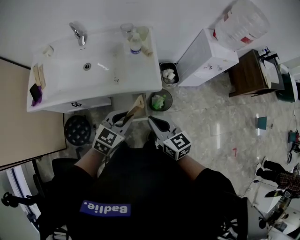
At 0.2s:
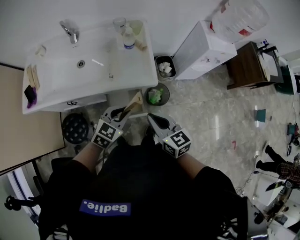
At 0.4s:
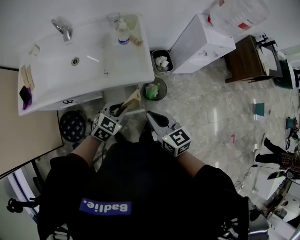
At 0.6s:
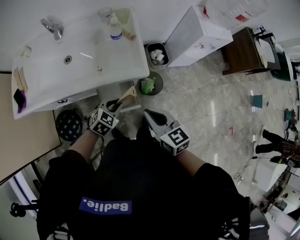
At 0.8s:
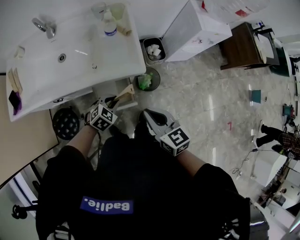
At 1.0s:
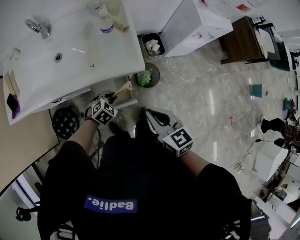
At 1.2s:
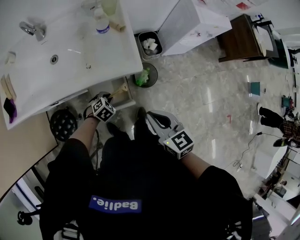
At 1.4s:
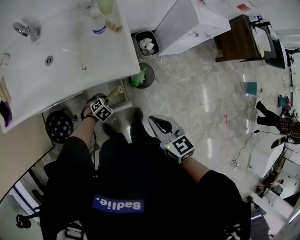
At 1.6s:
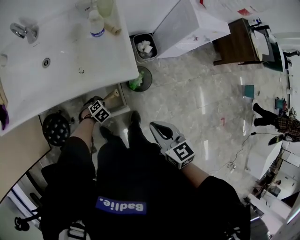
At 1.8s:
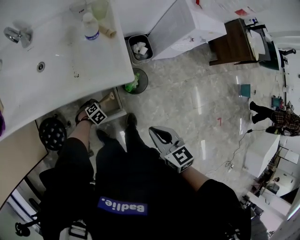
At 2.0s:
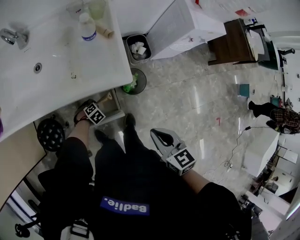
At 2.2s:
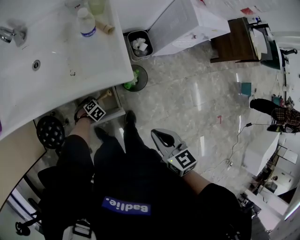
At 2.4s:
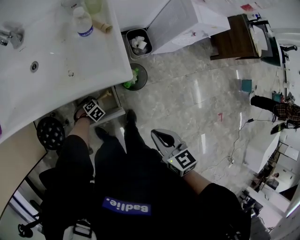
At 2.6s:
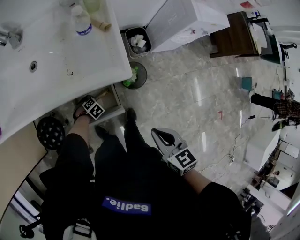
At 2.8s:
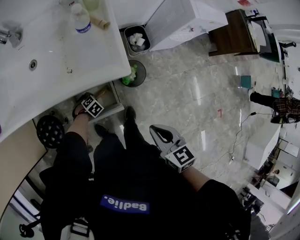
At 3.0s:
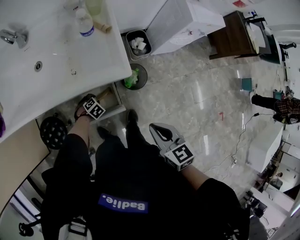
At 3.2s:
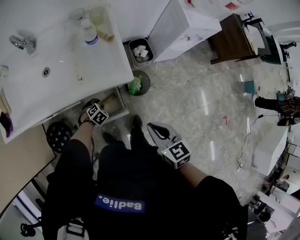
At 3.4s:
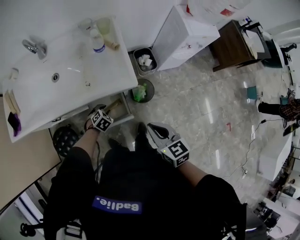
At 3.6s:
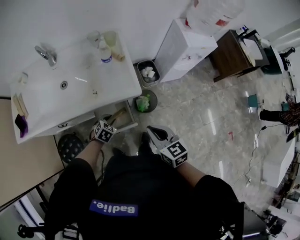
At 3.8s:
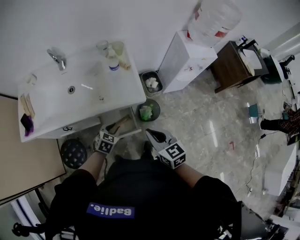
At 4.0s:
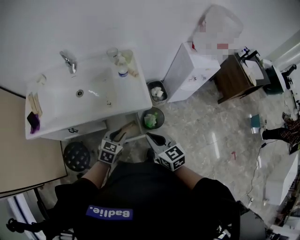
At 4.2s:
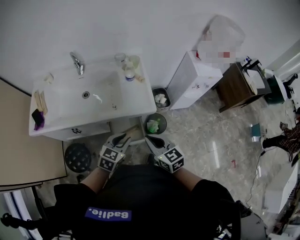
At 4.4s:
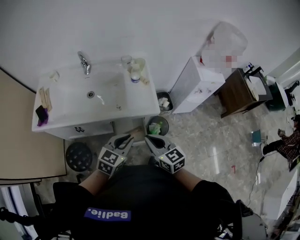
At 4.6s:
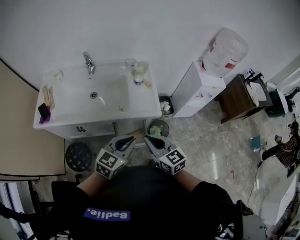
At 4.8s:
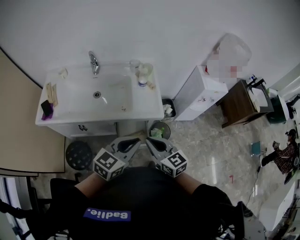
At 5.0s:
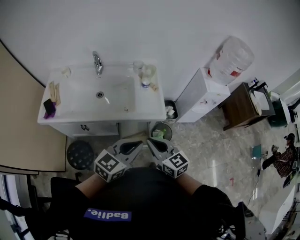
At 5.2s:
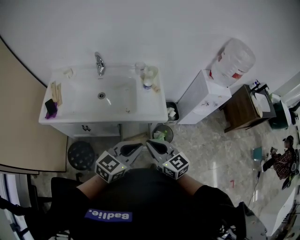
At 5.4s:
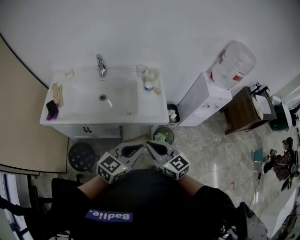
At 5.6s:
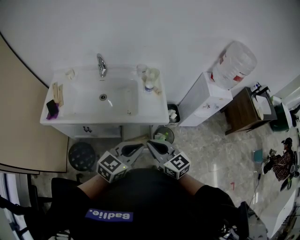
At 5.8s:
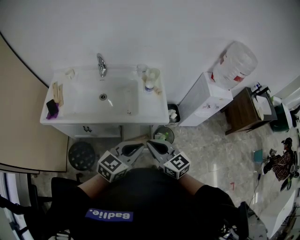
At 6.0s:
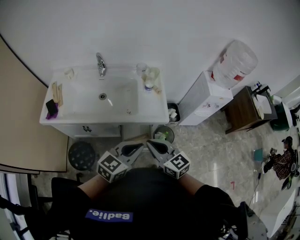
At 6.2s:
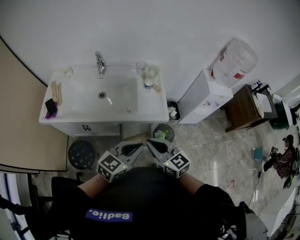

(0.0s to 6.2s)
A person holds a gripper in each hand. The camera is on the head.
0.0s - 1.6s: The right gripper shifts by about 15 cm, while the left gripper shifts approximately 35 cm downward, and tilts its fingers some 50 degrees downward.
1.6s - 3.2s: The left gripper travels downward and back again, some 10 cm each way.
3.2s - 4.6s: The right gripper heads to the left and upward, covering approximately 20 cm, and changes its angle by approximately 20 degrees, while the left gripper goes roughly 40 cm upward, and points its fingers some 50 degrees further upward.
4.6s - 6.2s: The grippers make only small movements.

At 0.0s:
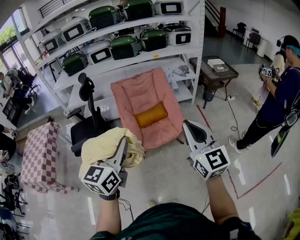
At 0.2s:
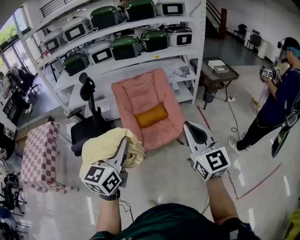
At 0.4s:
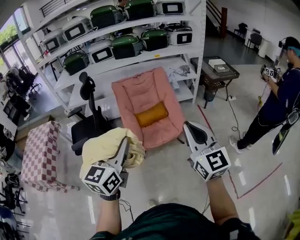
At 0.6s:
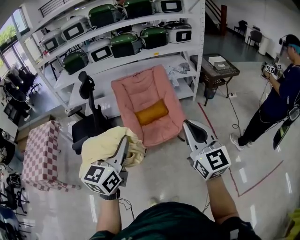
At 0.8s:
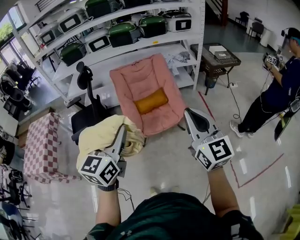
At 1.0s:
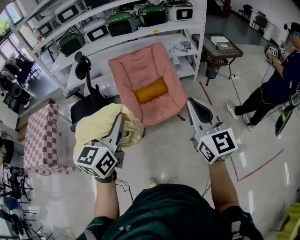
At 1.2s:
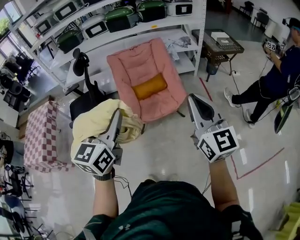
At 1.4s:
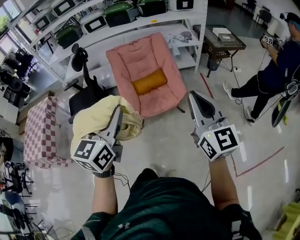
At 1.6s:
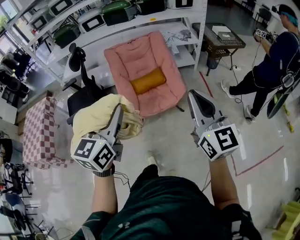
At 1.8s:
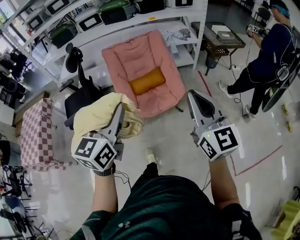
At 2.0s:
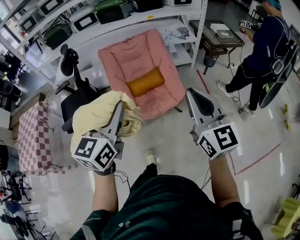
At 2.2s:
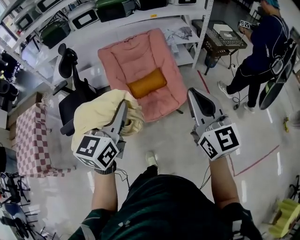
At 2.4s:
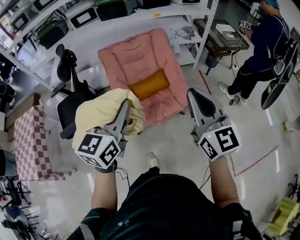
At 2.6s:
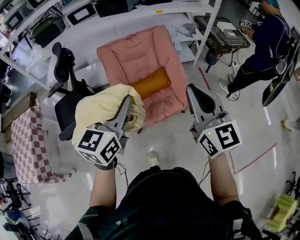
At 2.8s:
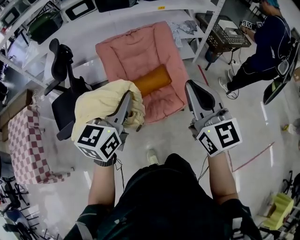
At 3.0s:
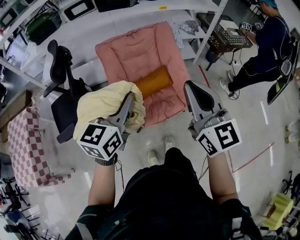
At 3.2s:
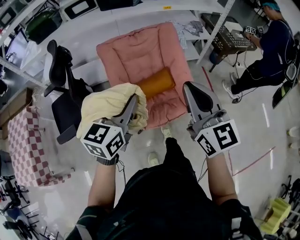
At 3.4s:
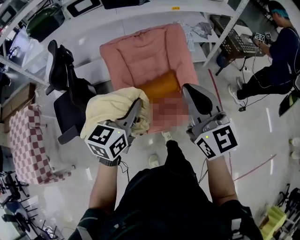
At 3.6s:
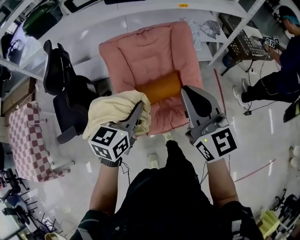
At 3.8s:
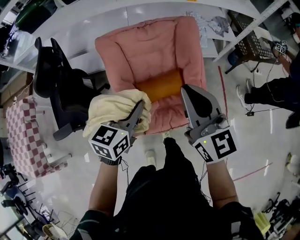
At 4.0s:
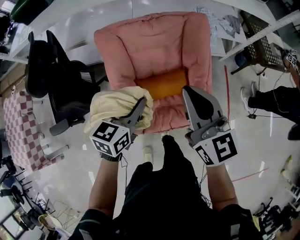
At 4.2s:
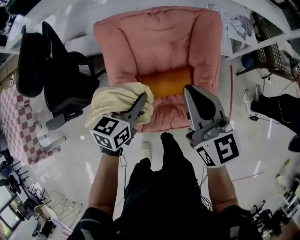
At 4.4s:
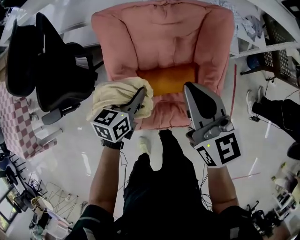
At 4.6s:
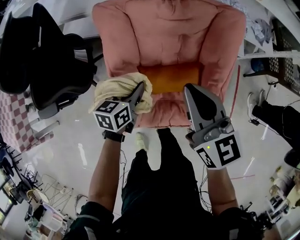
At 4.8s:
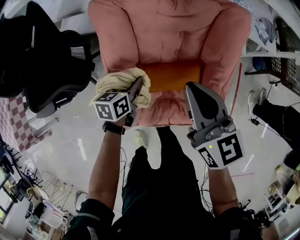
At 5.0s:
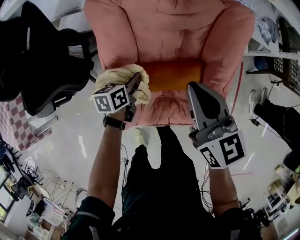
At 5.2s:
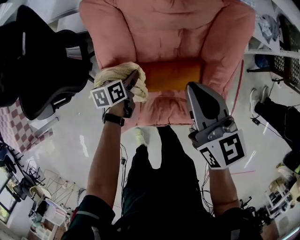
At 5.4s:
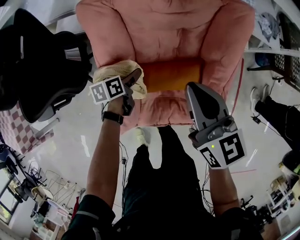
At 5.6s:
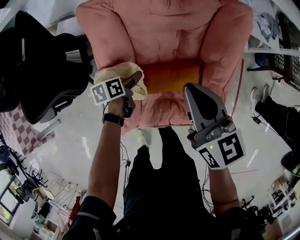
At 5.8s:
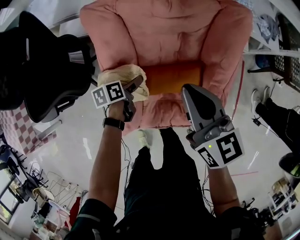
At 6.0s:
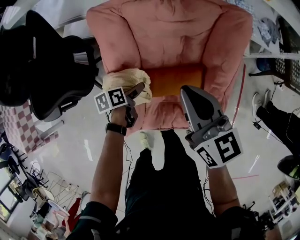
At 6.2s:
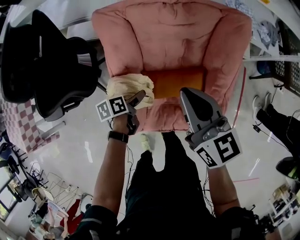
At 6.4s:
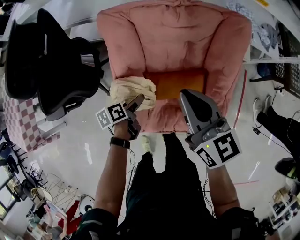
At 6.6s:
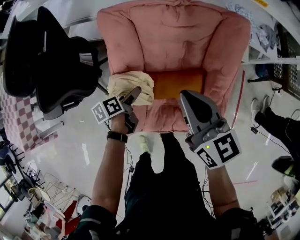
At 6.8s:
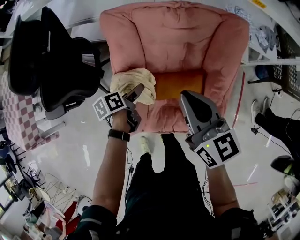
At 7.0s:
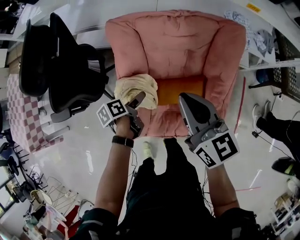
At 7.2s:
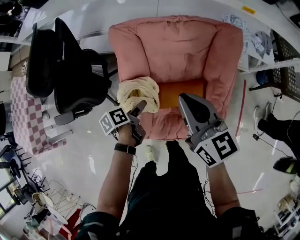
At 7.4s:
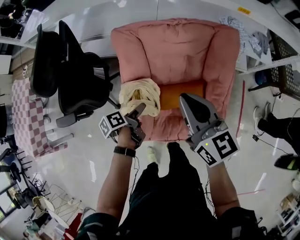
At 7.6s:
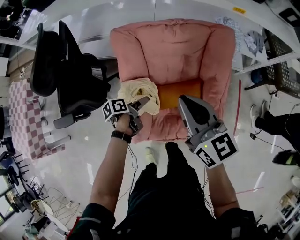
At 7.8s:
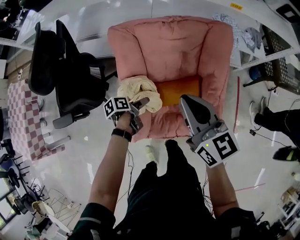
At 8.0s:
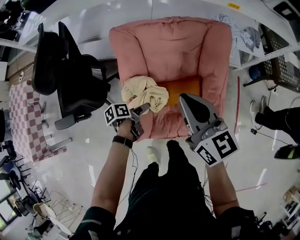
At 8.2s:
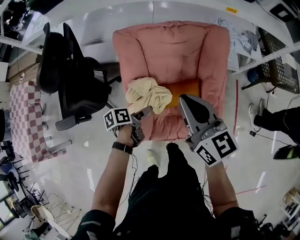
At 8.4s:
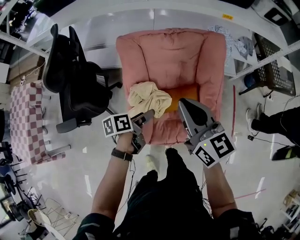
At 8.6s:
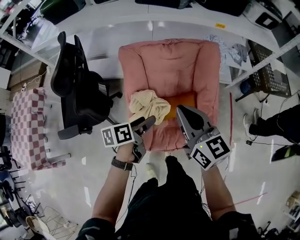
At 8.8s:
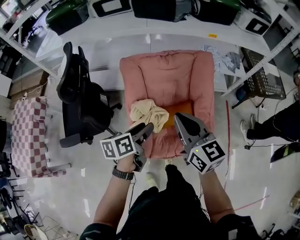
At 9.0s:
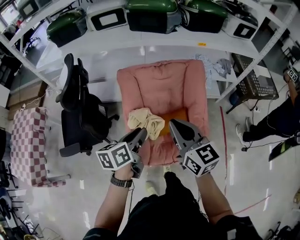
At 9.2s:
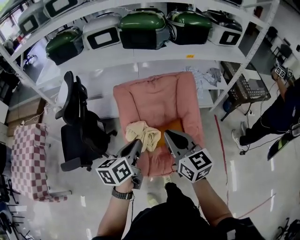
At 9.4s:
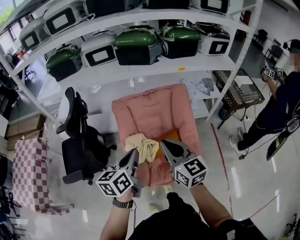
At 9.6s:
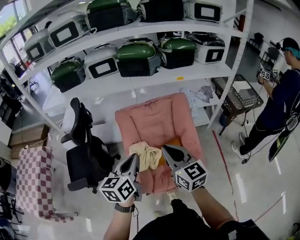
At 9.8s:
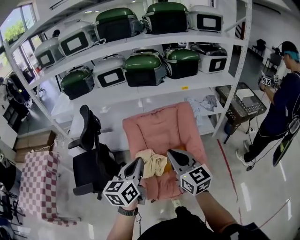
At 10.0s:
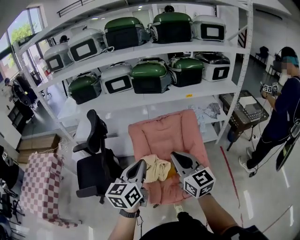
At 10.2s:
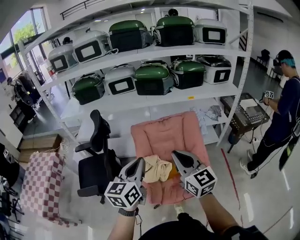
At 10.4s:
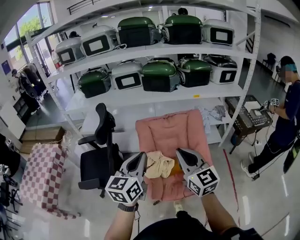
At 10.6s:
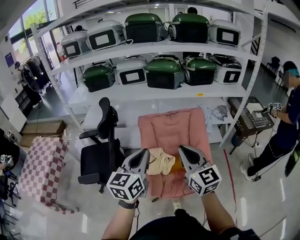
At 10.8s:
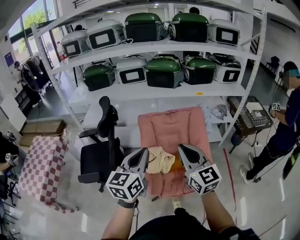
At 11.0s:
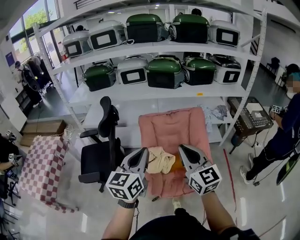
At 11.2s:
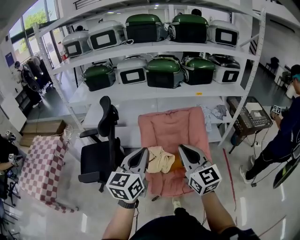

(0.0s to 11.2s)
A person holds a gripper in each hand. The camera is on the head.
0.0s - 1.6s: The two grippers go some 5 cm to the right.
1.6s - 3.2s: The right gripper heads forward and to the left, covering some 40 cm, while the left gripper shifts roughly 35 cm forward.
3.2s - 4.8s: The right gripper heads forward and downward, covering some 40 cm, and changes its angle by roughly 30 degrees. Meanwhile the left gripper heads downward and forward, covering approximately 50 cm, and turns by roughly 40 degrees.
4.8s - 6.4s: The left gripper is displaced backward by some 5 cm, swivels approximately 30 degrees, and opens.
6.4s - 8.0s: The left gripper shifts by approximately 5 cm. The right gripper travels upward and backward by roughly 10 cm.
8.0s - 9.6s: The right gripper heads backward and upward, covering about 20 cm. Meanwhile the left gripper is displaced upward by approximately 40 cm, rolls clockwise, seen from behind, by some 60 degrees, and closes.
9.6s - 11.2s: The two grippers go approximately 10 cm upward and backward.

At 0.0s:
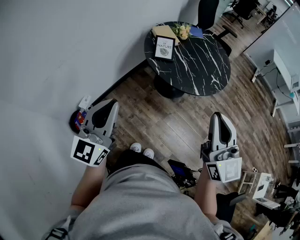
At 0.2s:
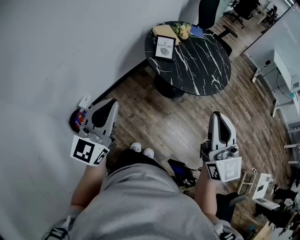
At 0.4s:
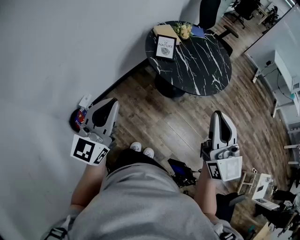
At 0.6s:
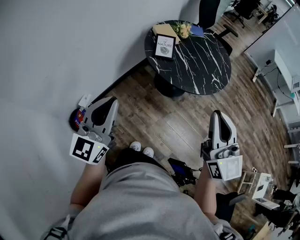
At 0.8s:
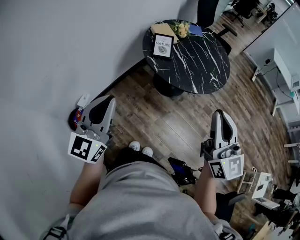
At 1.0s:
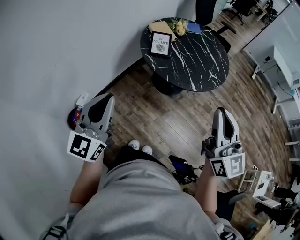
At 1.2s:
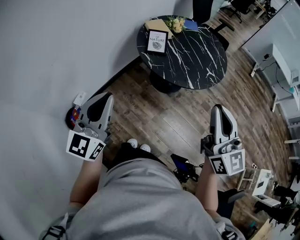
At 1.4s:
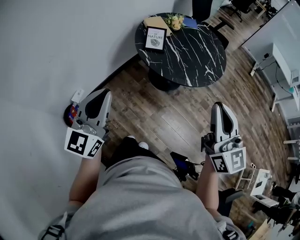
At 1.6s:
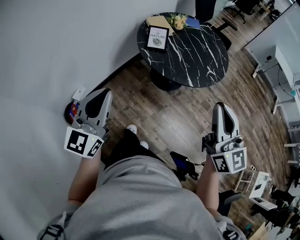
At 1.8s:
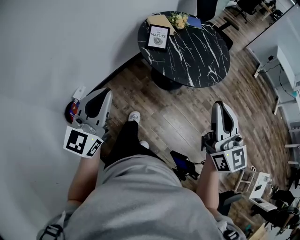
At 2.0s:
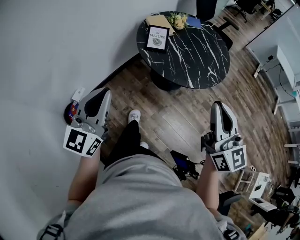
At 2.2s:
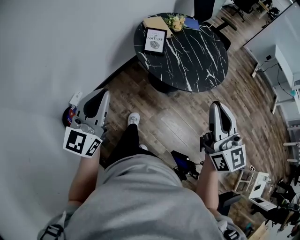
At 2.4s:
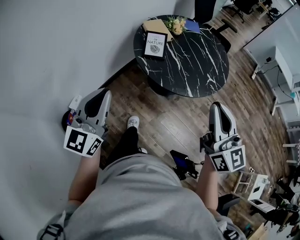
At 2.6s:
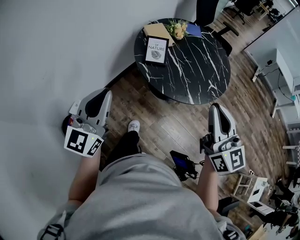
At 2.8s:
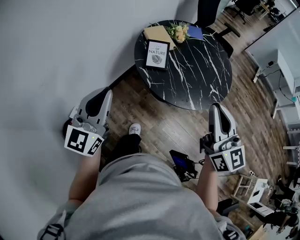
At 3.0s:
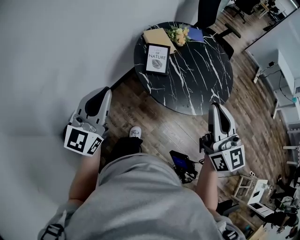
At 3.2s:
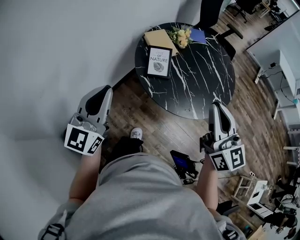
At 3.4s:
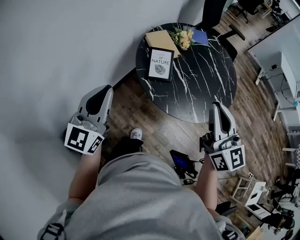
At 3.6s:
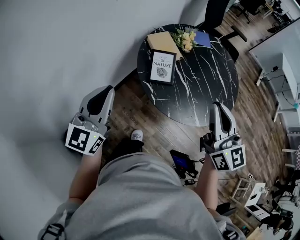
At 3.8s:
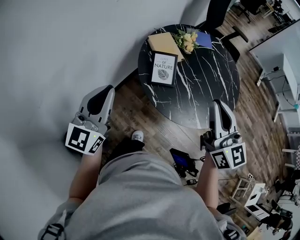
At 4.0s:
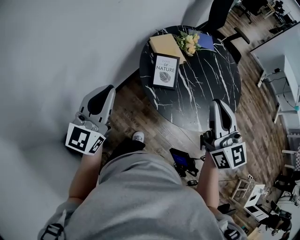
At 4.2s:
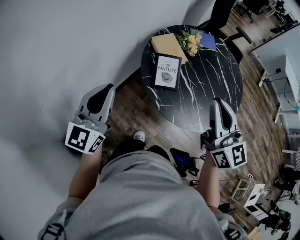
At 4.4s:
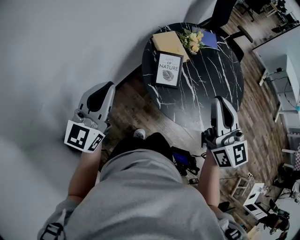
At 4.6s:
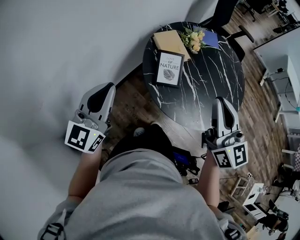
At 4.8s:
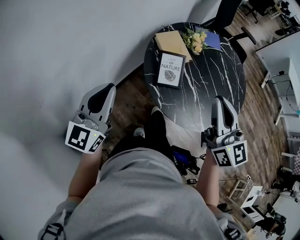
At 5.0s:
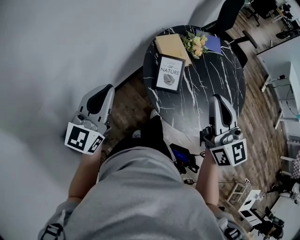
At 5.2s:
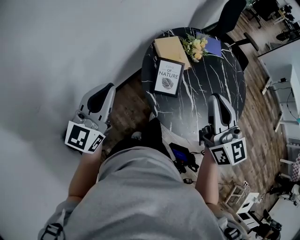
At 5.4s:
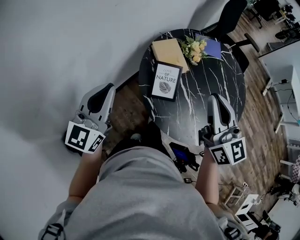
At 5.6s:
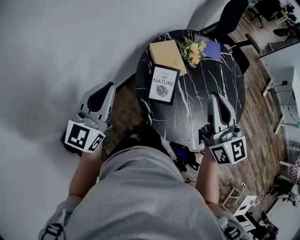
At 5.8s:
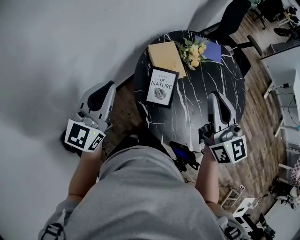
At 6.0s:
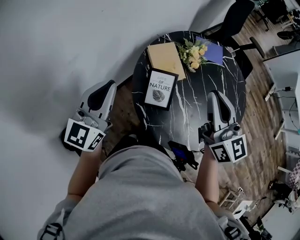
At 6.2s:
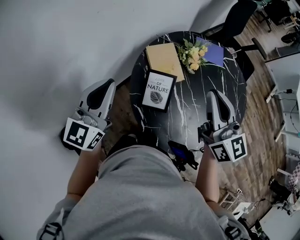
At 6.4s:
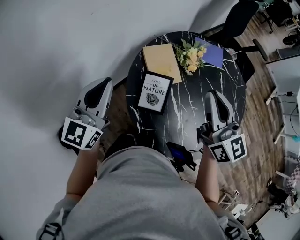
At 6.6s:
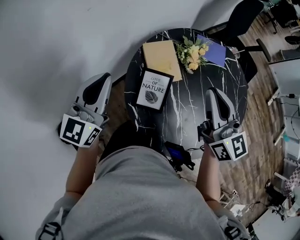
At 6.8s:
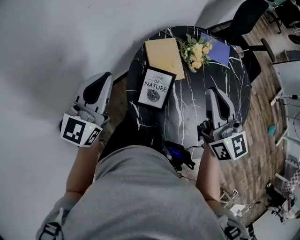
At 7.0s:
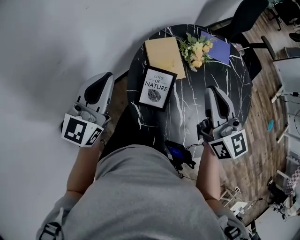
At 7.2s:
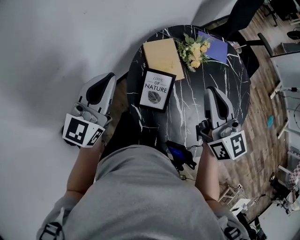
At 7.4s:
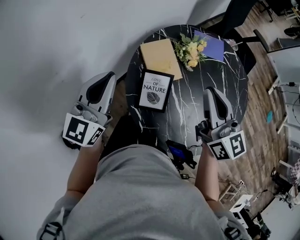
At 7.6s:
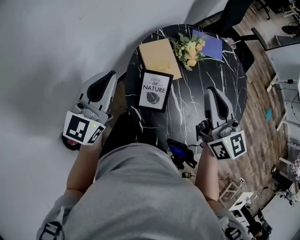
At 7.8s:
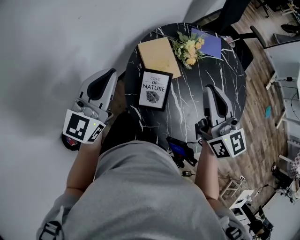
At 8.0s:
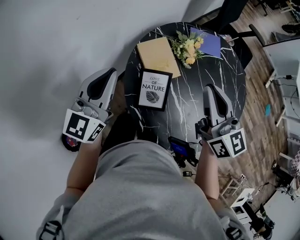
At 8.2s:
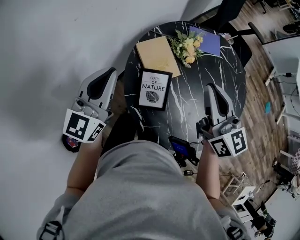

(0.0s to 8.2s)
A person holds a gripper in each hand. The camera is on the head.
0.0s - 1.6s: The right gripper shifts some 10 cm to the right, while the left gripper is displaced to the right by approximately 5 cm.
1.6s - 3.2s: The two grippers go some 25 cm forward.
3.2s - 5.0s: The grippers both shift forward by some 15 cm.
5.0s - 6.6s: Both grippers move forward and to the right, roughly 20 cm.
6.6s - 8.2s: The grippers move only a little.
